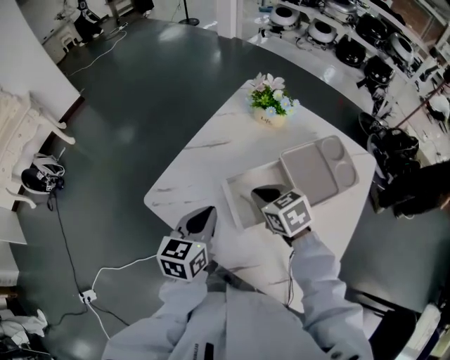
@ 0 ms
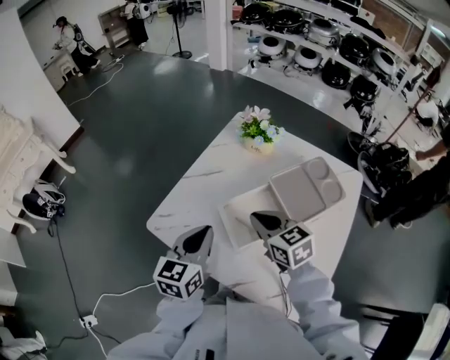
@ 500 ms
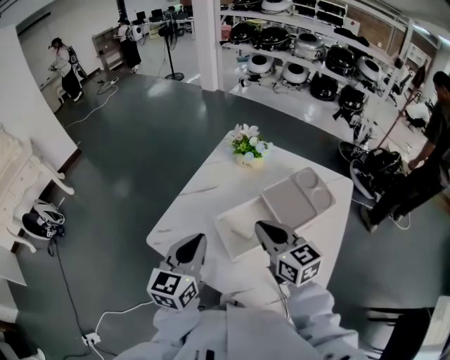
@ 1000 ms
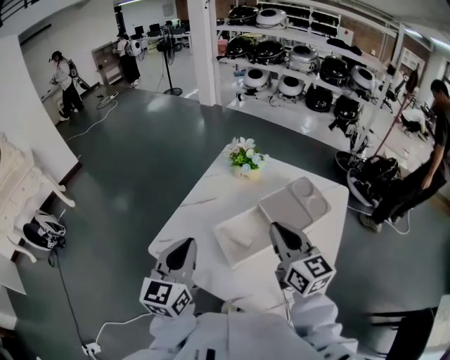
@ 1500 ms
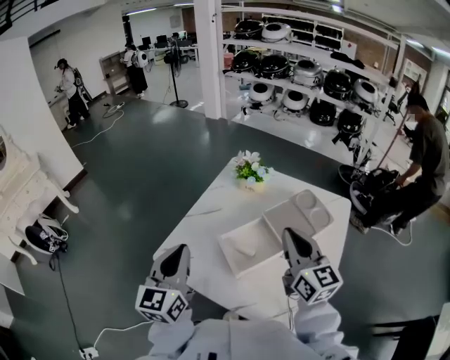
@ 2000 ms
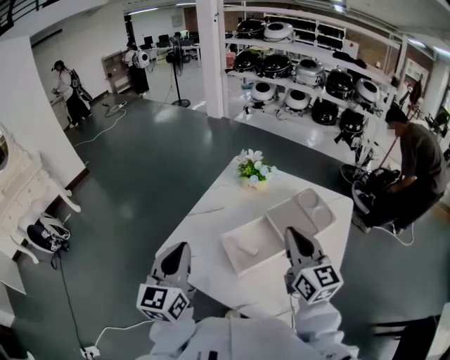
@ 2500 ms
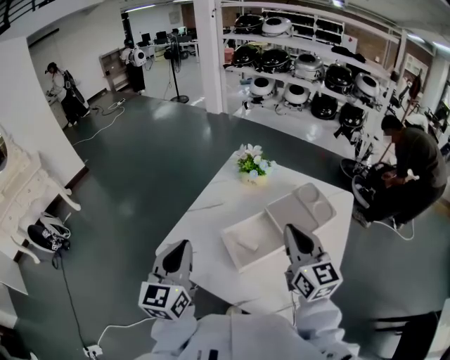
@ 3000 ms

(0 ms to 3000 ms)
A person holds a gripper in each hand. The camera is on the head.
0 ms - 1500 ms: The right gripper moves upward and to the right, roughly 20 cm, and points its fingers roughly 40 degrees further upward. The left gripper is displaced upward by roughly 15 cm, and changes its angle by about 20 degrees.
1500 ms - 3000 ms: The grippers stay close to where they were, moving slightly.

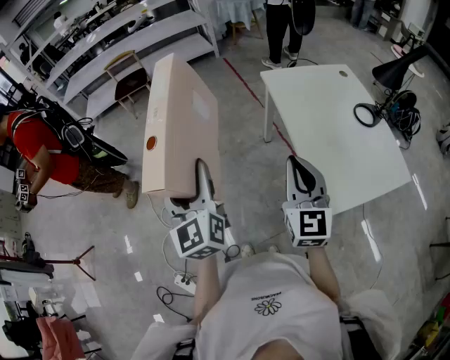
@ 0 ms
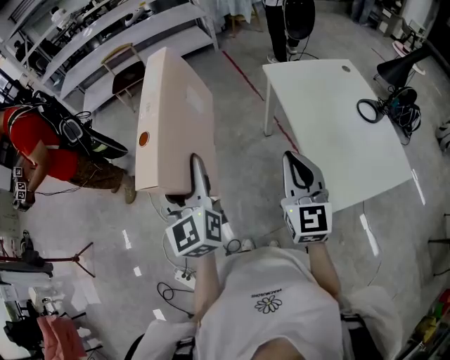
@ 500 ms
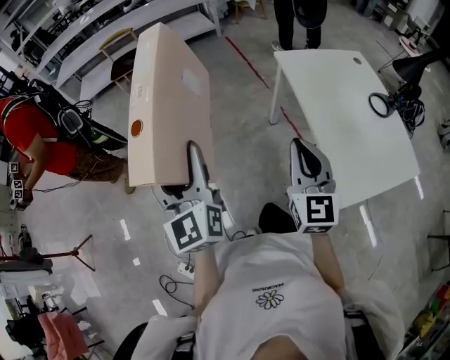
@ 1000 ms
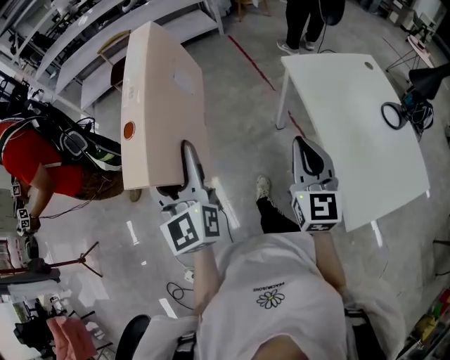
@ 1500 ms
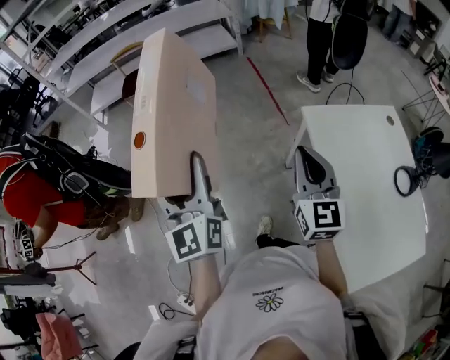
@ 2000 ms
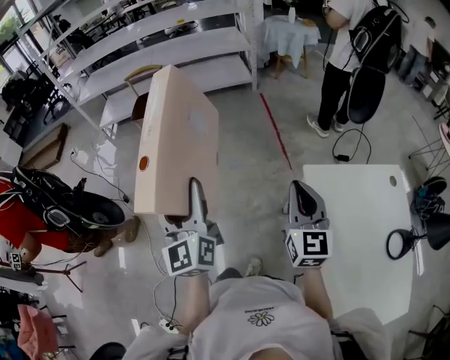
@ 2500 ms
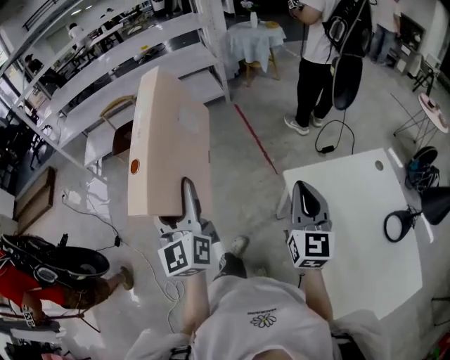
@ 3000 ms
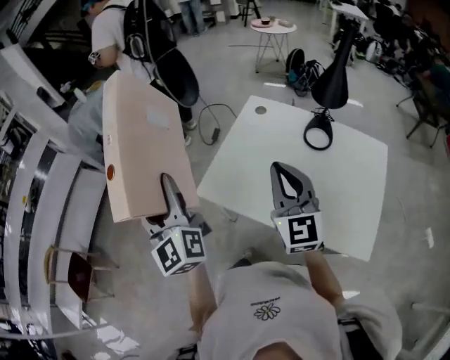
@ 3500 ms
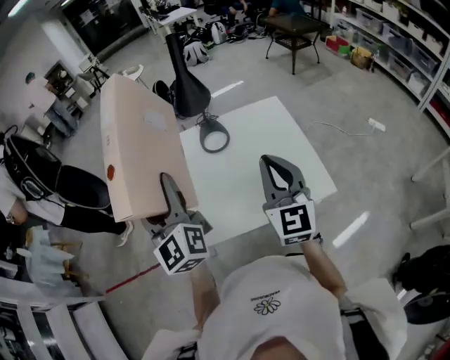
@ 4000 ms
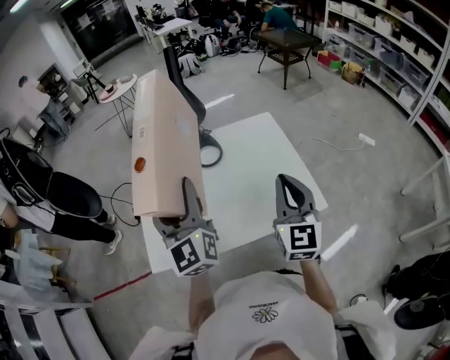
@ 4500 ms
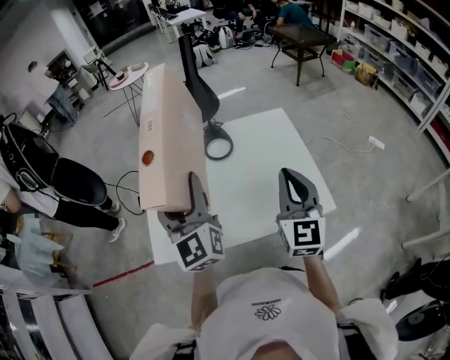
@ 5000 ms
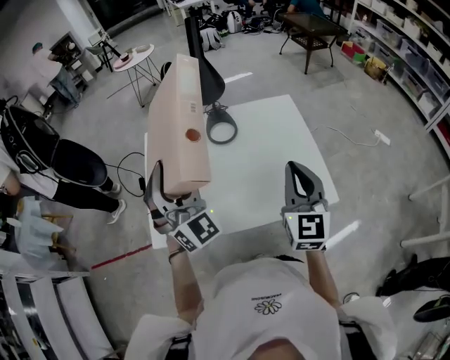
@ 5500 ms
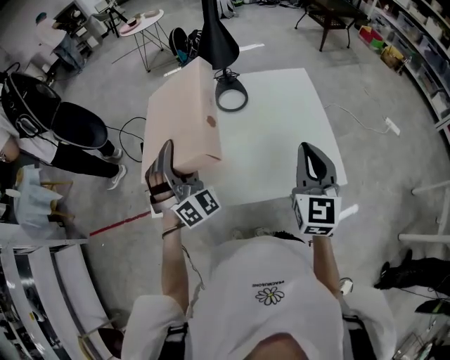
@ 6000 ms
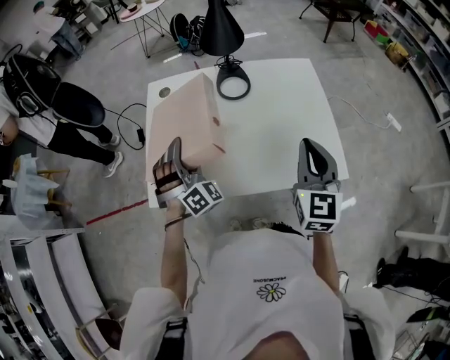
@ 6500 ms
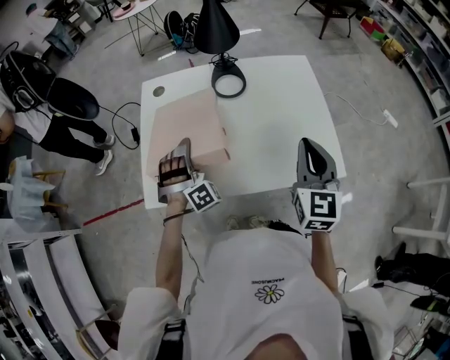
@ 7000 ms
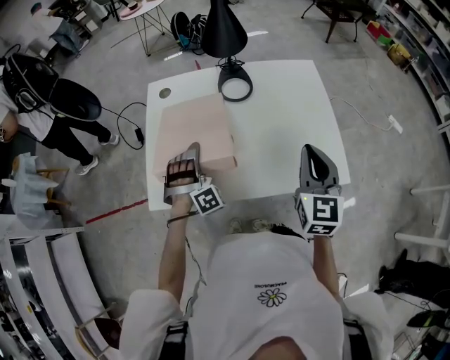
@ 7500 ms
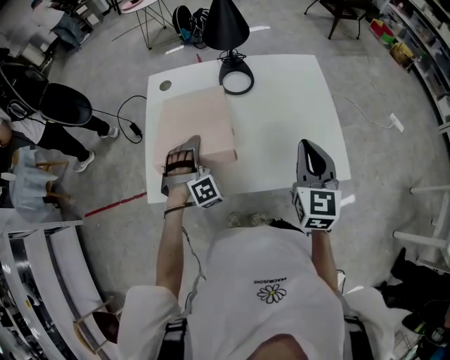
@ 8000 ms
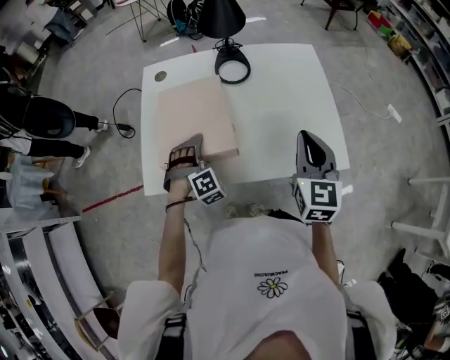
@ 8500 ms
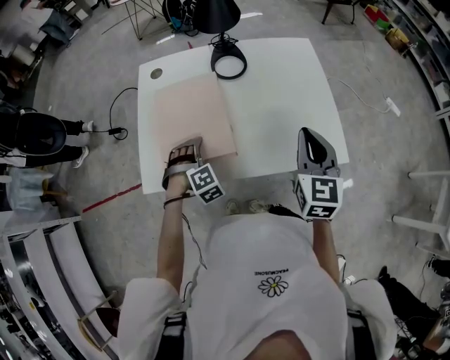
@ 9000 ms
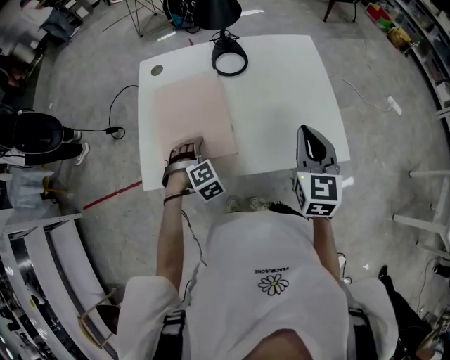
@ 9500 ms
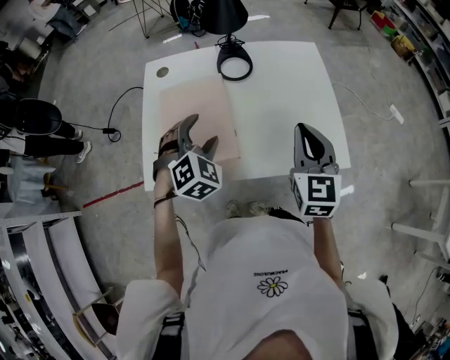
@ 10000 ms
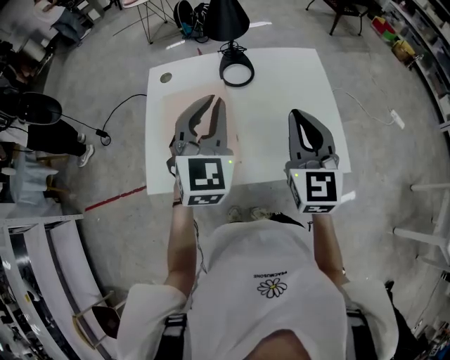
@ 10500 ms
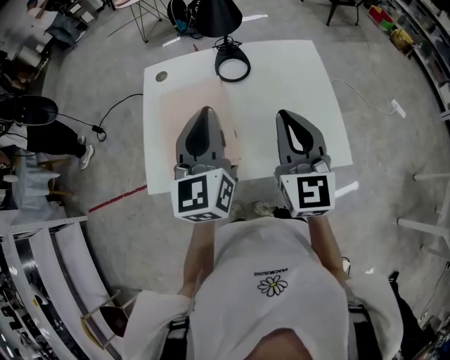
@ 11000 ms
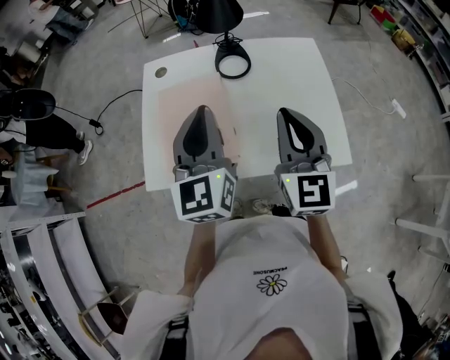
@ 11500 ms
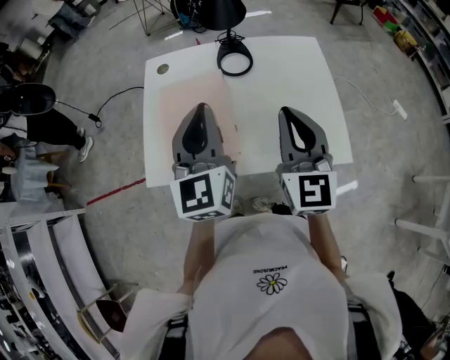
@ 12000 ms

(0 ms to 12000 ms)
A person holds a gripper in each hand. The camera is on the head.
0 ms - 2000 ms: Both grippers travel together forward, some 35 cm.
2000 ms - 4000 ms: The right gripper moves about 35 cm, and turns by approximately 90 degrees; the left gripper changes place by approximately 60 cm, and rotates about 90 degrees.
4000 ms - 6000 ms: The left gripper shifts roughly 15 cm downward, and twists some 70 degrees clockwise, seen from behind; the right gripper changes place by some 5 cm.
6000 ms - 8000 ms: The right gripper ends up approximately 5 cm from where it was; the left gripper goes some 15 cm downward, and changes its angle by about 40 degrees.
8000 ms - 10000 ms: The left gripper goes roughly 10 cm upward, and changes its angle by some 30 degrees.
10000 ms - 12000 ms: The right gripper shifts about 10 cm upward and to the left. The left gripper shifts roughly 15 cm upward, tilts its fingers approximately 40 degrees upward, and closes up.

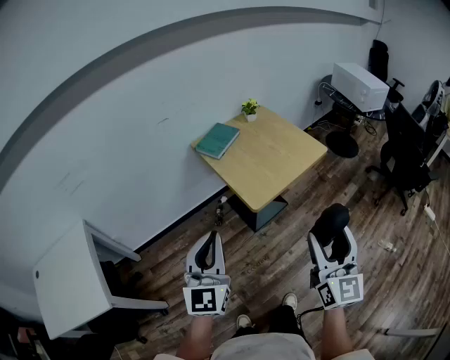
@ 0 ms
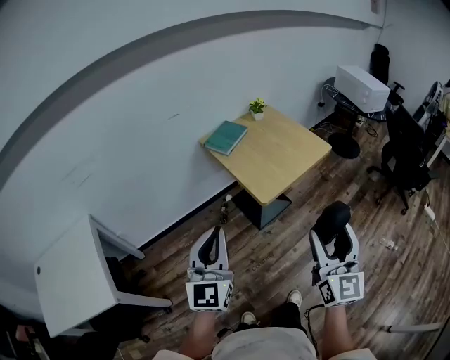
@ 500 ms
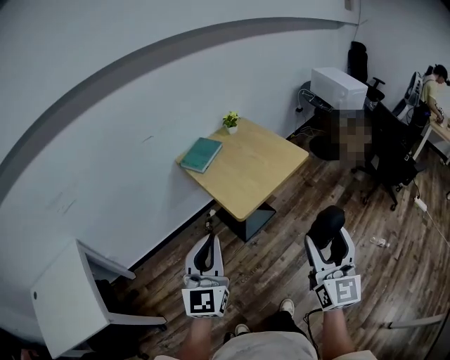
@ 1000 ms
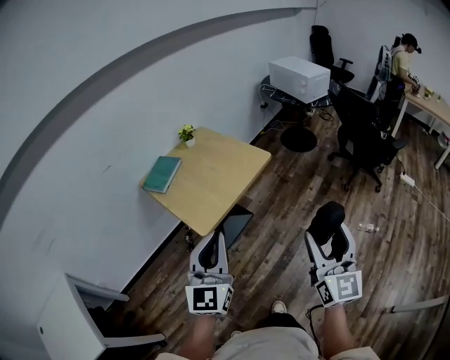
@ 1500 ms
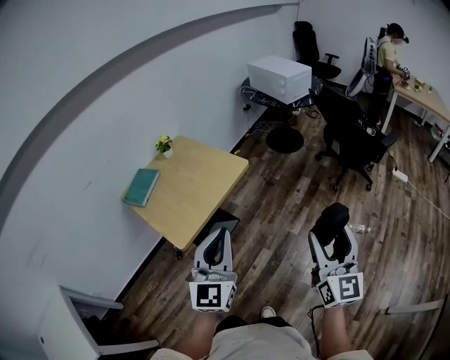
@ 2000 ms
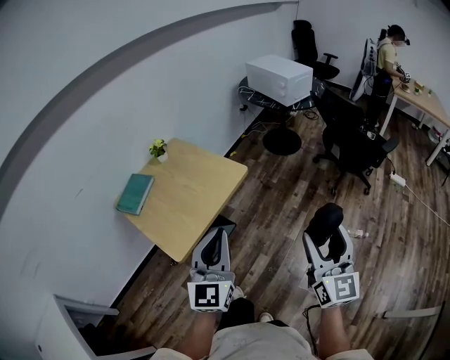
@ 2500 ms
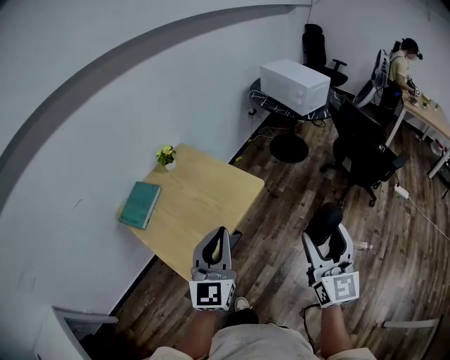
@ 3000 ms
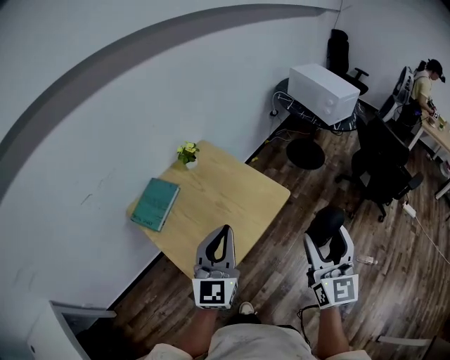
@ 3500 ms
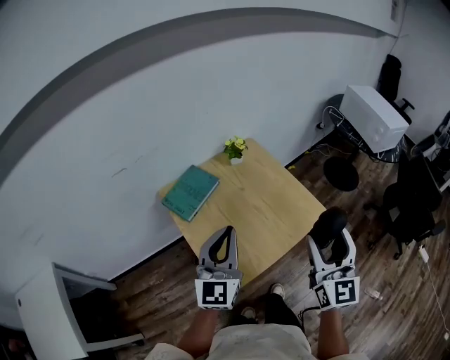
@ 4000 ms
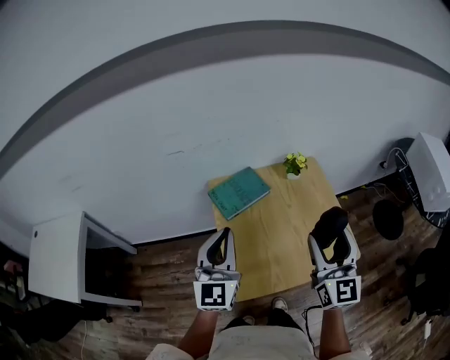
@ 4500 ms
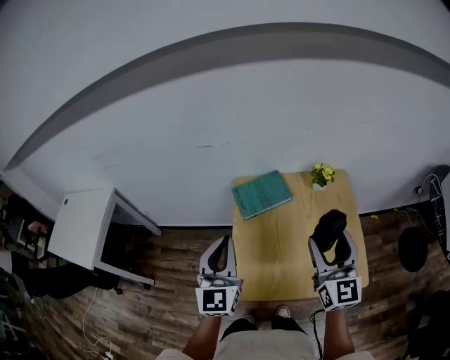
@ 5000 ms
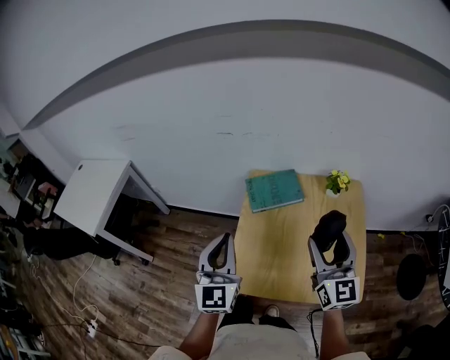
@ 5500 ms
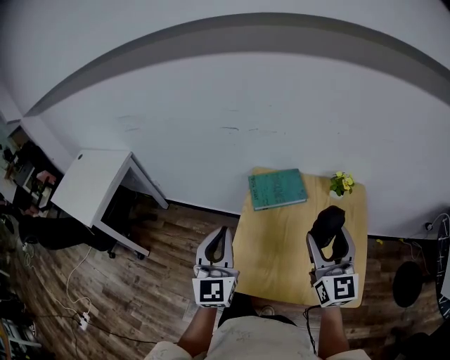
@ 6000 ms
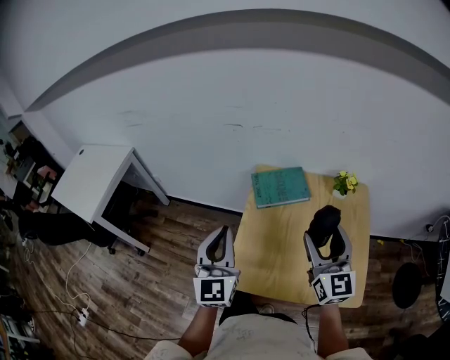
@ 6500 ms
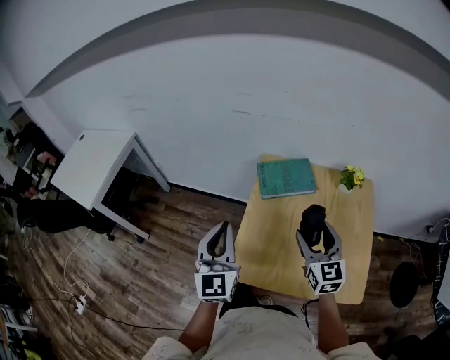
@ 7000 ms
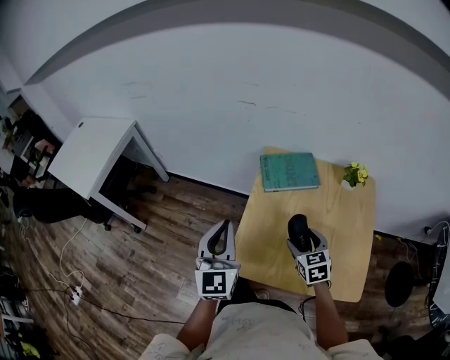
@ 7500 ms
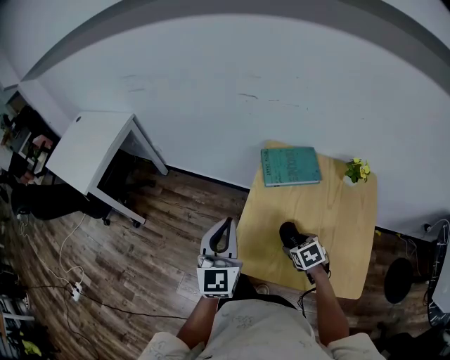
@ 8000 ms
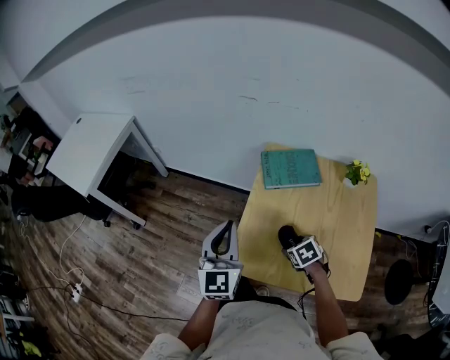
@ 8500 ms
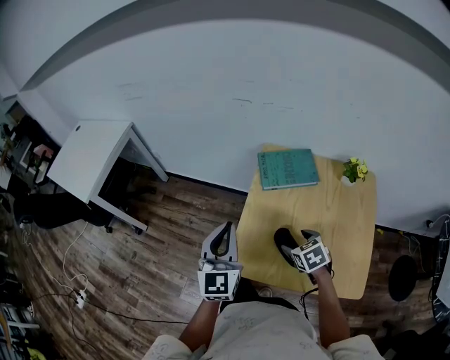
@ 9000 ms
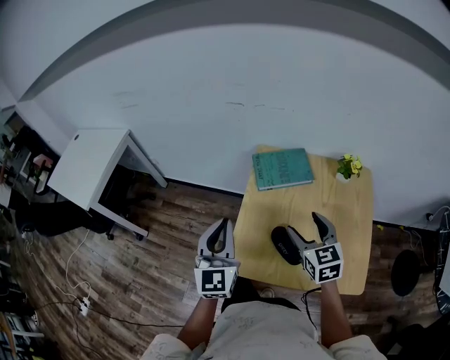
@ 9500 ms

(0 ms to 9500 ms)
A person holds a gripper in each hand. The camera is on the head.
0 ms - 2000 ms: Both grippers move to the right, about 35 cm. The left gripper changes its angle by some 20 degrees.
2000 ms - 4000 ms: Both grippers are carried to the left and forward, about 40 cm. The right gripper turns by approximately 20 degrees.
4000 ms - 5500 ms: The right gripper ends up approximately 20 cm from where it was, and turns by approximately 50 degrees, while the left gripper changes place by approximately 10 cm, and rotates approximately 50 degrees.
5500 ms - 7500 ms: The right gripper travels downward by roughly 25 cm, and angles its fingers downward, by some 40 degrees. Meanwhile the left gripper goes roughly 10 cm downward and to the left.
7500 ms - 9500 ms: The right gripper heads upward, covering some 10 cm.

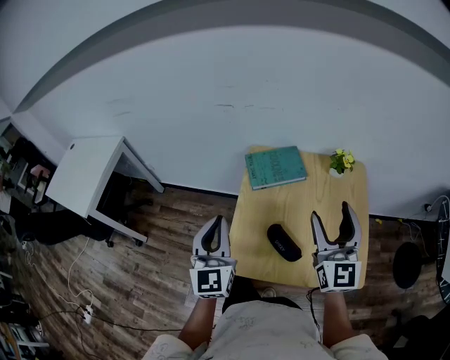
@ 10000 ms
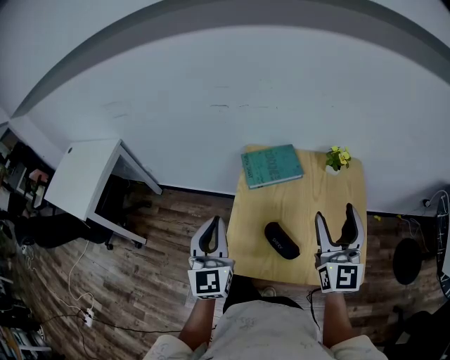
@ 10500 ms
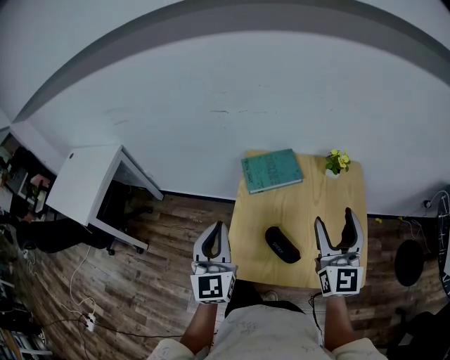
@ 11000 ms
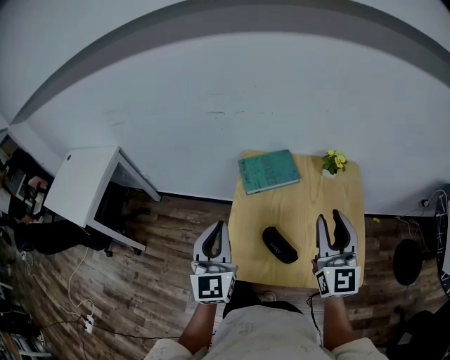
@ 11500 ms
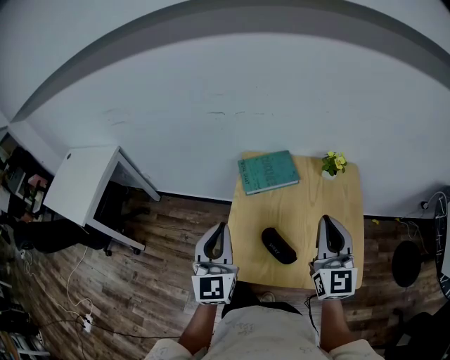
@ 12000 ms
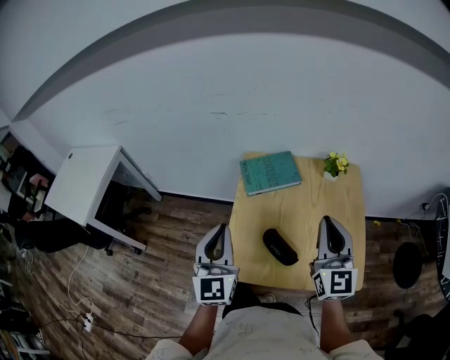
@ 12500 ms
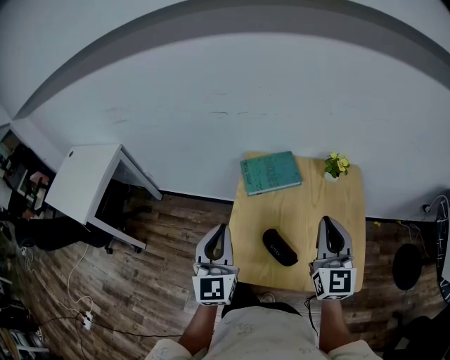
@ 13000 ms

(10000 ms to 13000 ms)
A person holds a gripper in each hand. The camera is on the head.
10000 ms - 11500 ms: The right gripper closes up.
11500 ms - 13000 ms: The right gripper closes up.
